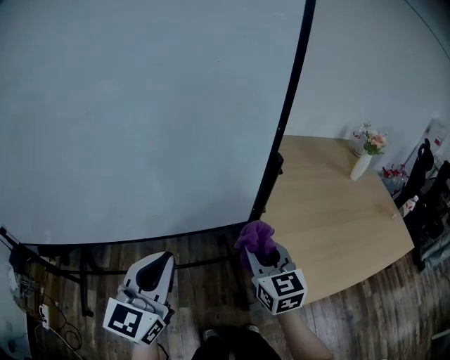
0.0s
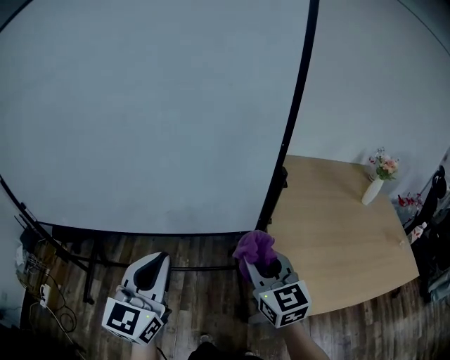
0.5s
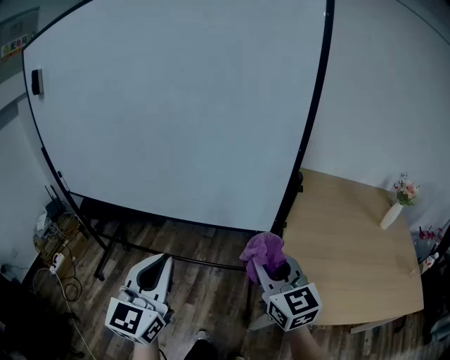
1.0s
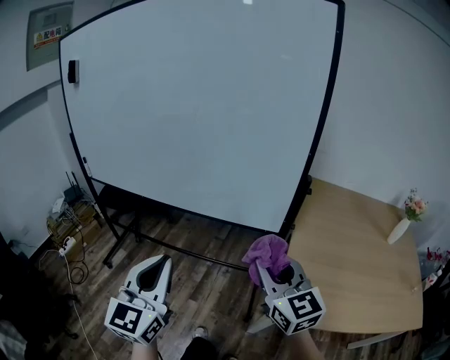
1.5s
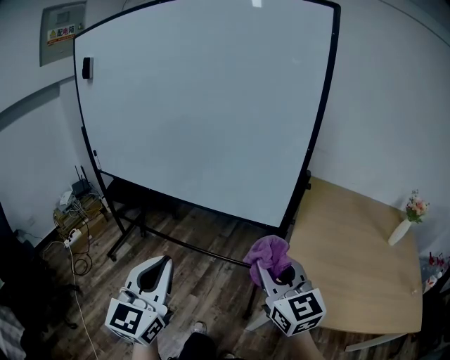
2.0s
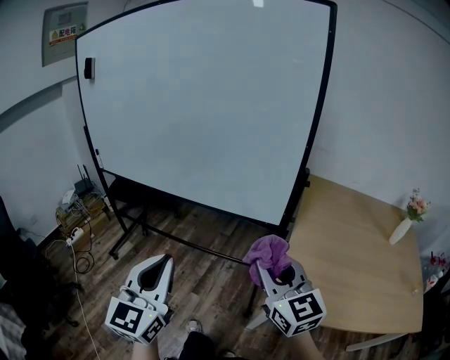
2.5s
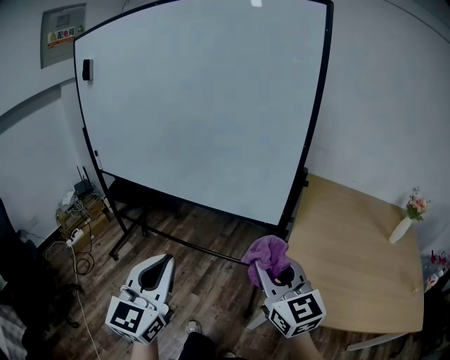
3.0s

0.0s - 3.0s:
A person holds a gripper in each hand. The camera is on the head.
0.0s - 1.5s: The right gripper changes place by approximately 20 cm, and turns by about 30 degrees; the left gripper changes place by some 20 cm, and turns by about 30 degrees.
1.5s - 3.0s: The grippers both shift backward by about 5 cm.

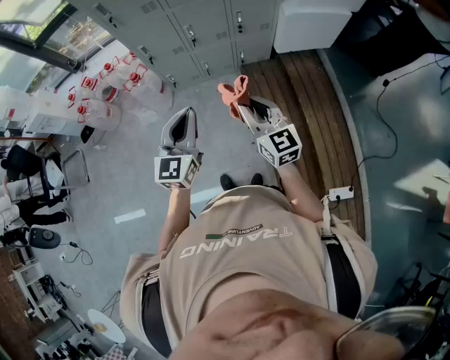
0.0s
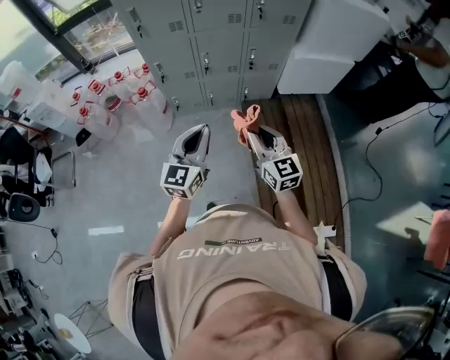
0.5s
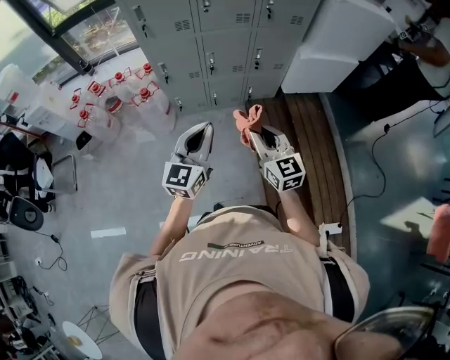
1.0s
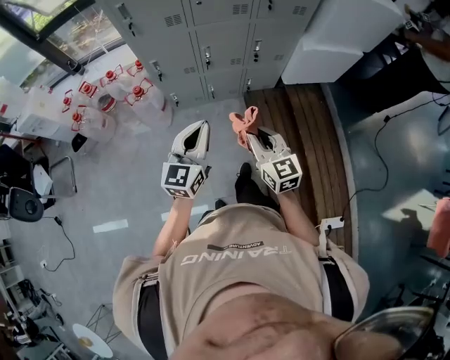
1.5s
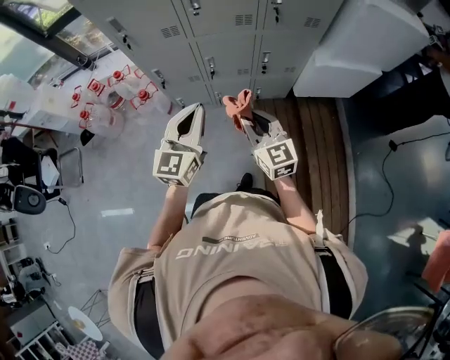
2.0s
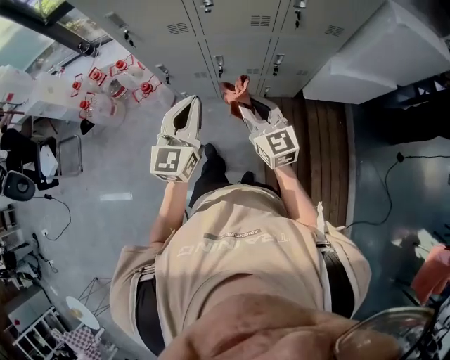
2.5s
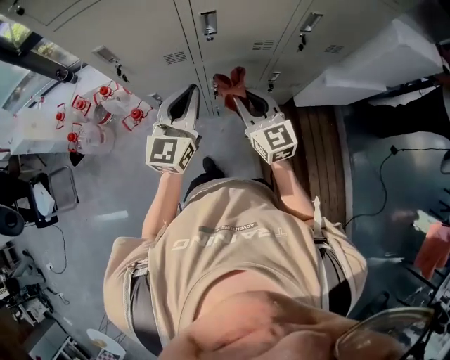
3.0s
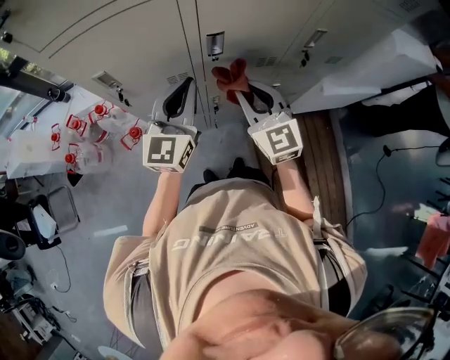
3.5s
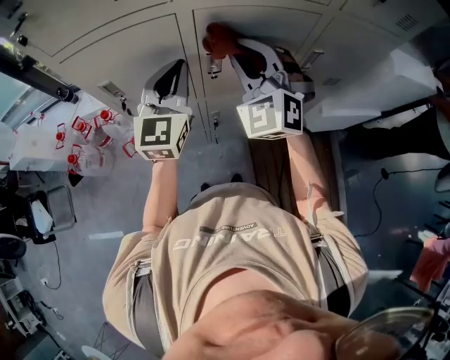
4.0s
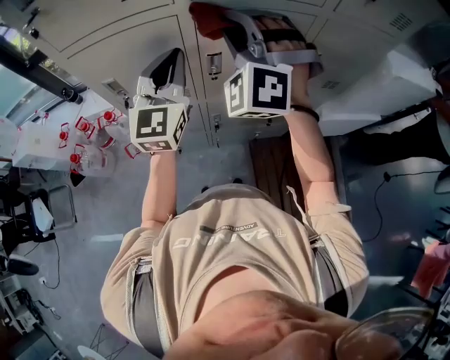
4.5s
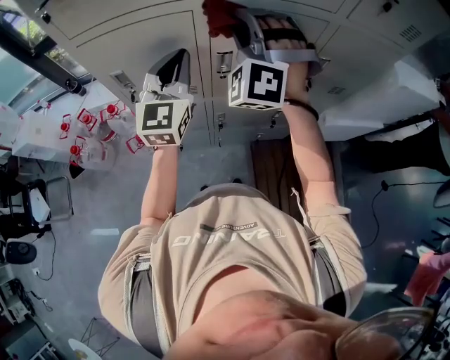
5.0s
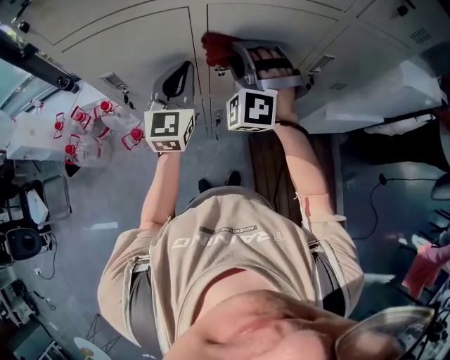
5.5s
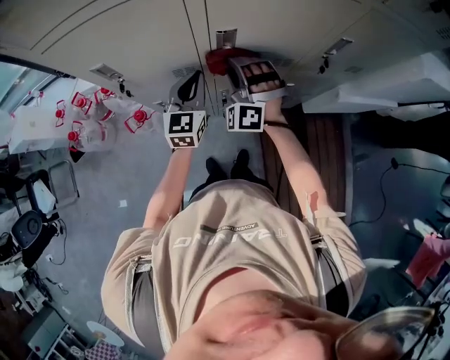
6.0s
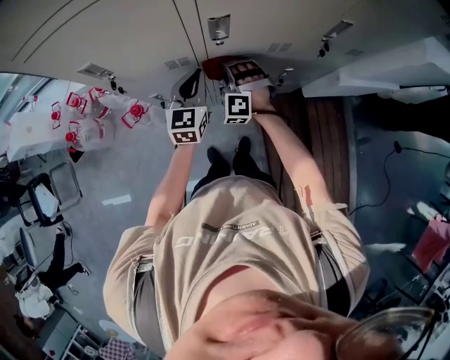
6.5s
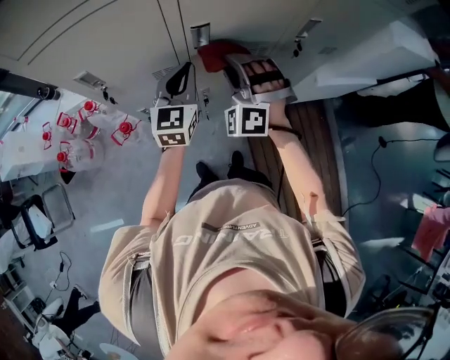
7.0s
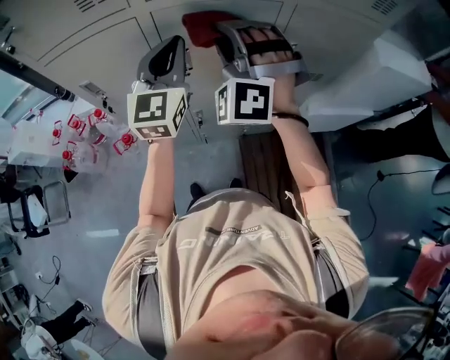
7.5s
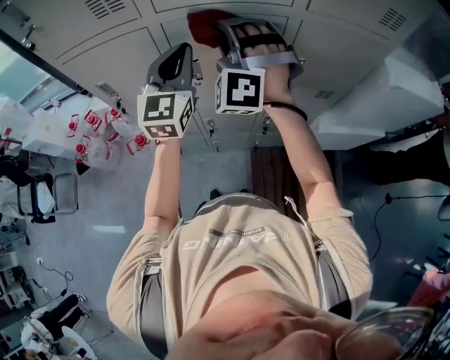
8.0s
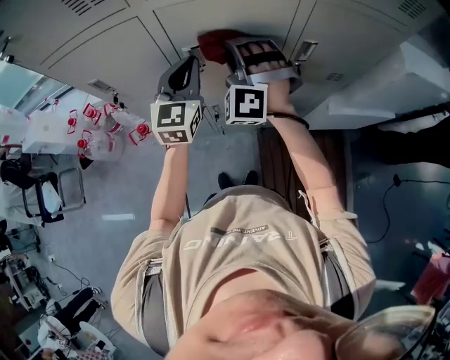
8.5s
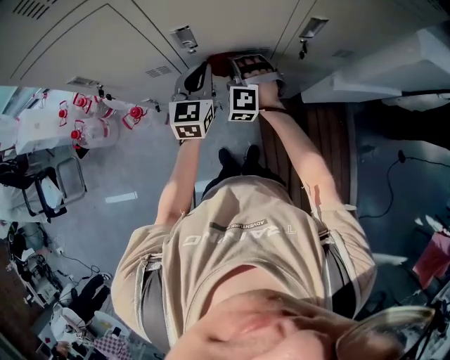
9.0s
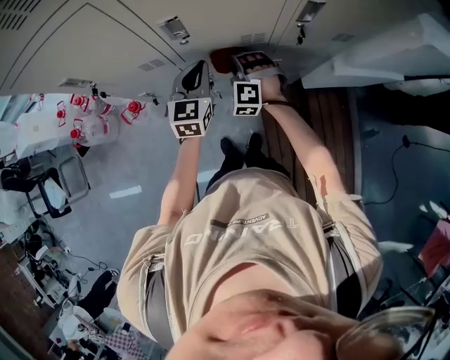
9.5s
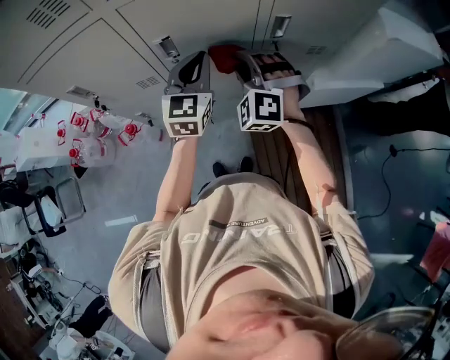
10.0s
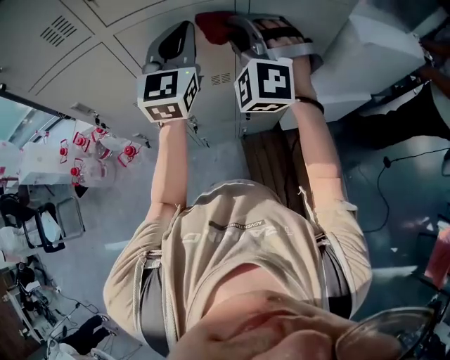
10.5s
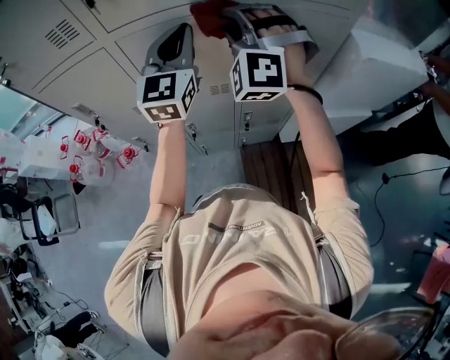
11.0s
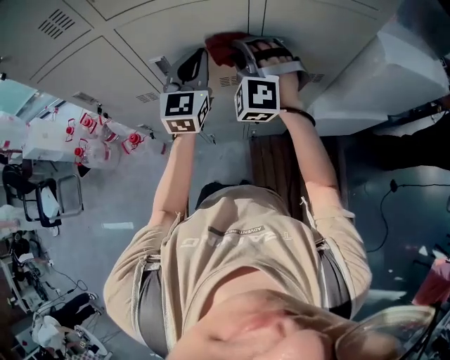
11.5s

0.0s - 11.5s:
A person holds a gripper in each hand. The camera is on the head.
0.0s - 2.0s: Both grippers move forward, roughly 20 cm.
2.0s - 4.0s: The left gripper moves forward, some 35 cm, while the right gripper heads forward and upward, covering approximately 40 cm, and rolls counterclockwise, seen from behind, by roughly 60 degrees.
4.0s - 6.0s: The grippers both shift downward by approximately 20 cm. The right gripper rotates about 30 degrees.
6.0s - 7.5s: The two grippers go about 25 cm upward.
7.5s - 9.5s: Both grippers travel together downward, approximately 35 cm. The left gripper turns by about 30 degrees; the right gripper angles its fingers downward, by about 30 degrees.
9.5s - 11.5s: The left gripper travels upward and to the right by roughly 20 cm, and turns by roughly 20 degrees, while the right gripper goes some 25 cm upward, and changes its angle by some 20 degrees.

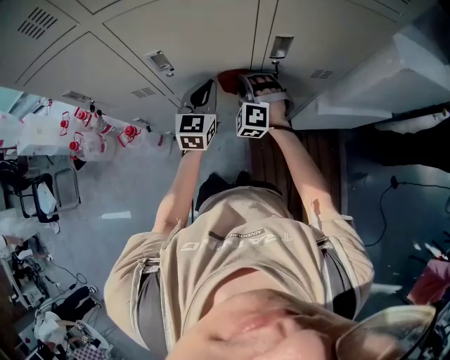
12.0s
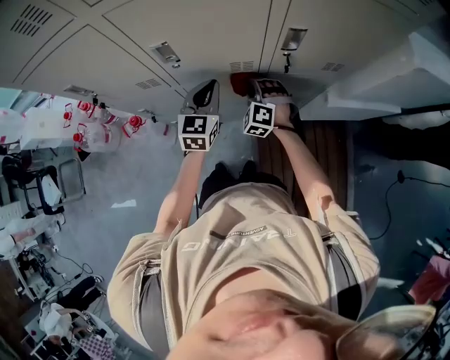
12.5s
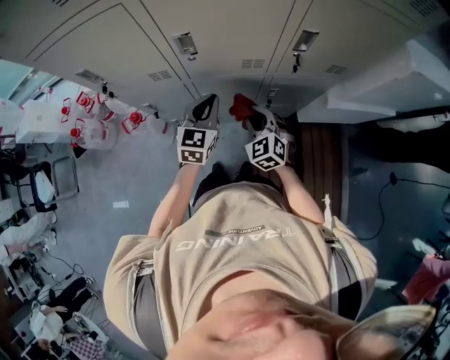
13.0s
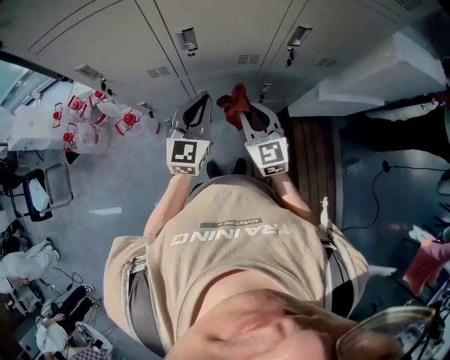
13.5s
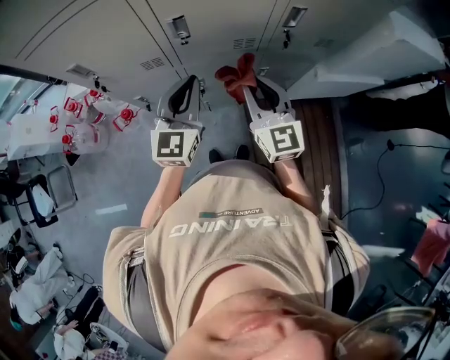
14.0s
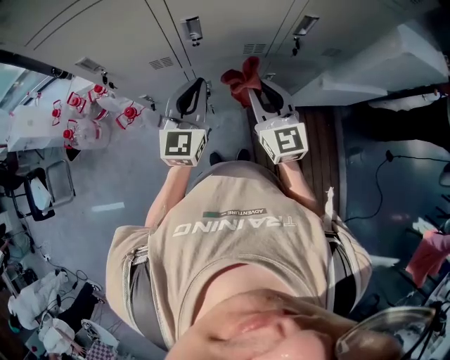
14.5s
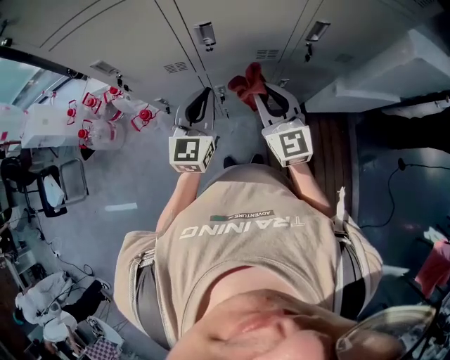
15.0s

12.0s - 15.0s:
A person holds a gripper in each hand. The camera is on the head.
12.0s - 13.5s: The left gripper moves backward and to the left, approximately 15 cm, while the right gripper goes roughly 15 cm backward and upward, and rotates around the line of its fingers by approximately 60 degrees, clockwise from behind.
13.5s - 15.0s: The right gripper shifts approximately 5 cm upward.

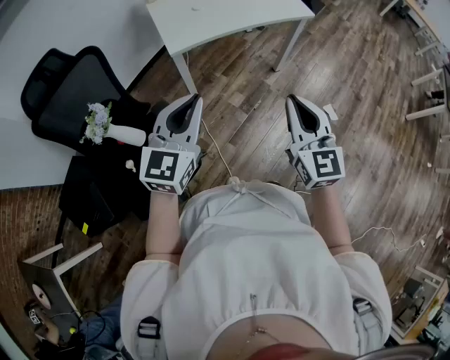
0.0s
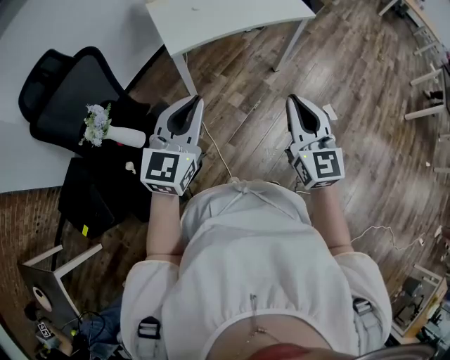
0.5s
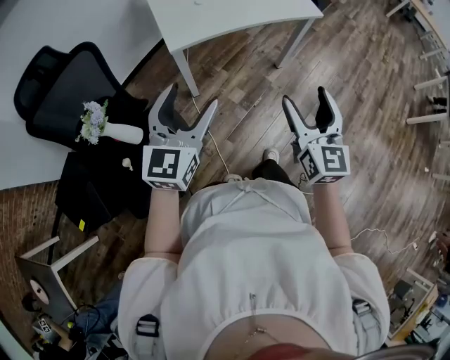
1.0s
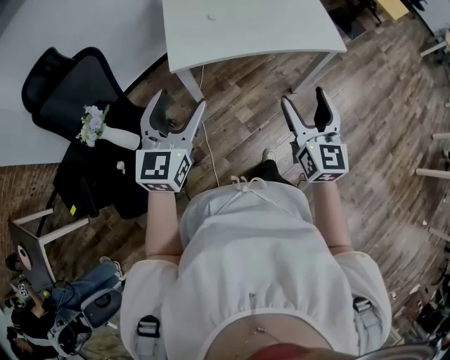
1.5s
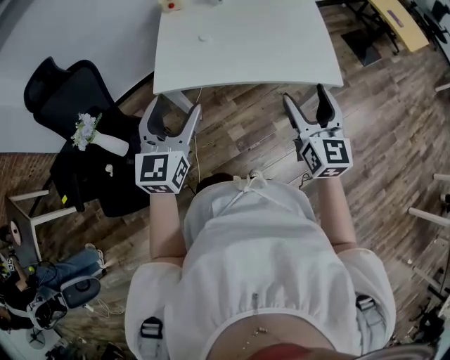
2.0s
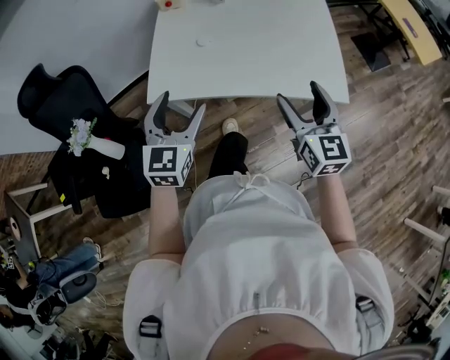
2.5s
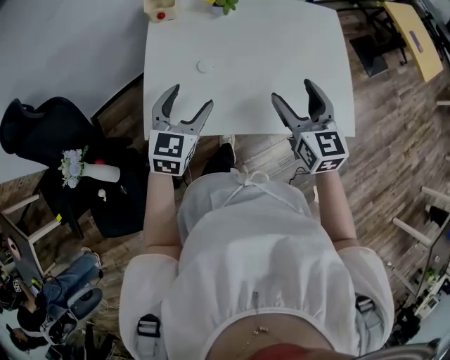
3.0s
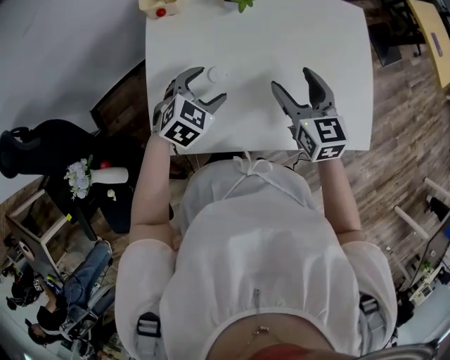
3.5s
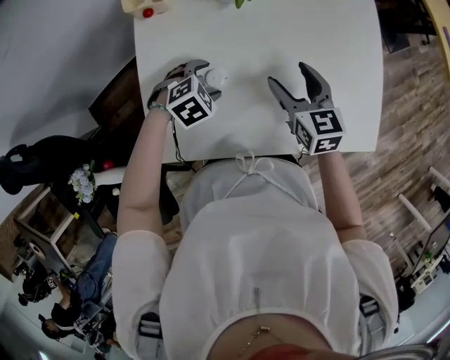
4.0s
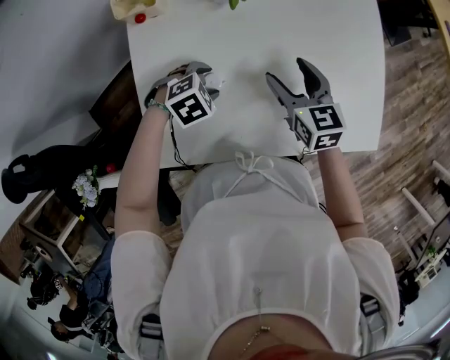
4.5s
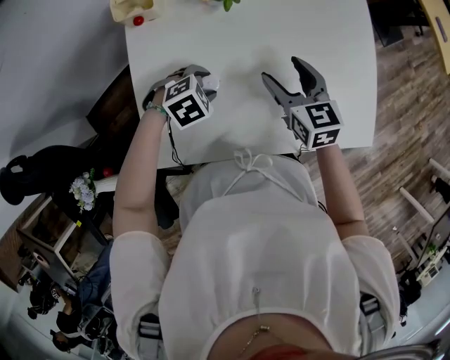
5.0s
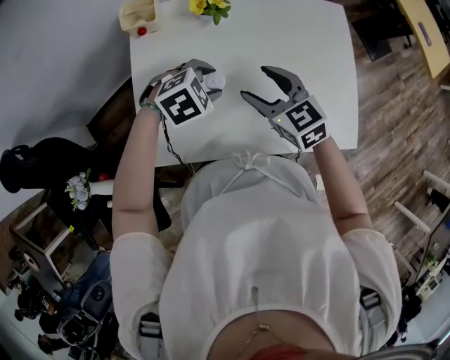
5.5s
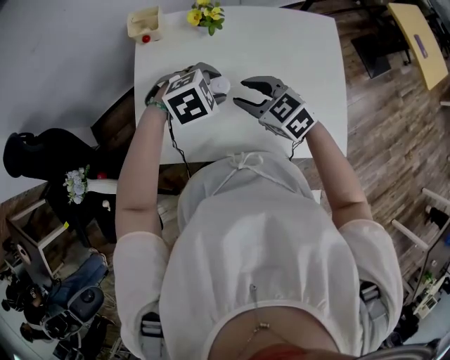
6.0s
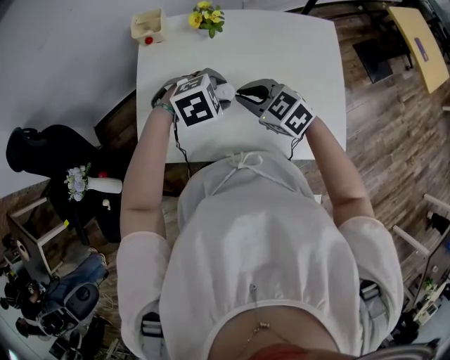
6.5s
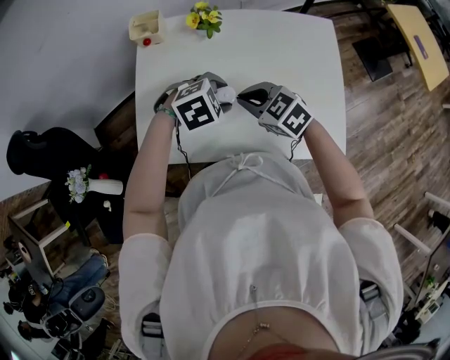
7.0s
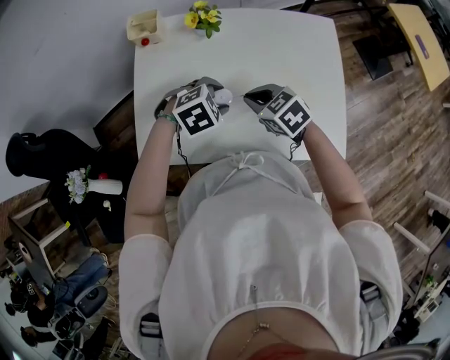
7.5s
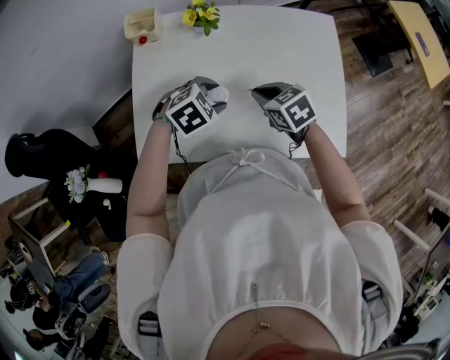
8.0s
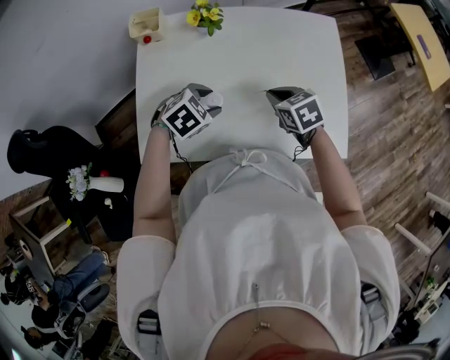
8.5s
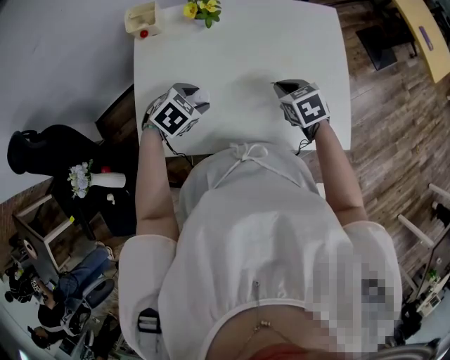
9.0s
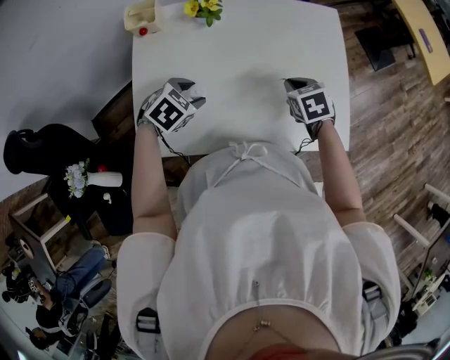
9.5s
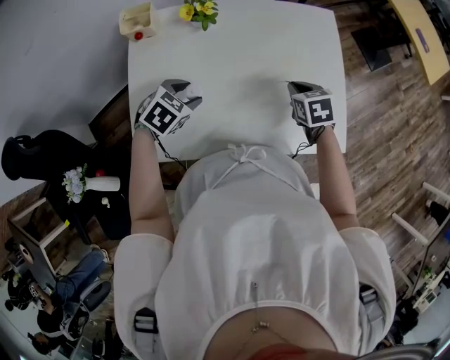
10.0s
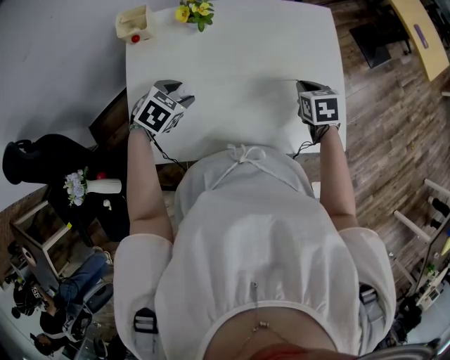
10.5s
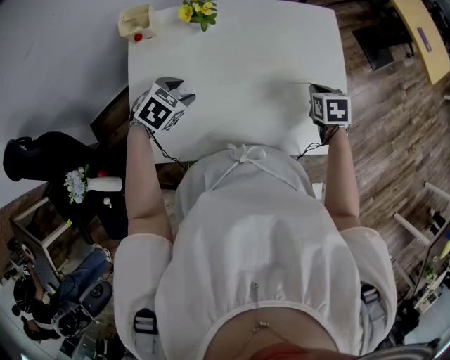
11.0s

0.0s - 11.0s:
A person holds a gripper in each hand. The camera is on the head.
0.0s - 2.0s: The right gripper moves approximately 50 cm, turns by about 20 degrees, and opens up. The left gripper changes place by roughly 35 cm, turns by about 30 degrees, and opens.
2.0s - 3.5s: The right gripper shifts approximately 35 cm forward, and changes its angle by some 20 degrees. The left gripper moves forward and downward, approximately 40 cm, and tilts its fingers roughly 40 degrees downward.
3.5s - 5.5s: The left gripper is displaced to the right by some 5 cm, travels downward and back again, approximately 10 cm each way, changes its angle by approximately 30 degrees, and closes its fingers; the right gripper turns by roughly 20 degrees.
5.5s - 7.5s: The left gripper ends up some 5 cm from where it was. Meanwhile the right gripper ends up approximately 5 cm from where it was, swivels some 20 degrees, and closes its fingers.
7.5s - 9.0s: The left gripper shifts some 5 cm to the left. Meanwhile the right gripper travels to the right by roughly 10 cm, and turns by about 20 degrees.
9.0s - 11.0s: The right gripper goes about 15 cm to the right and forward, and turns by roughly 30 degrees. Meanwhile the left gripper moves roughly 5 cm.
